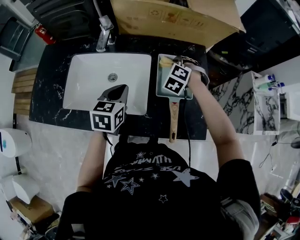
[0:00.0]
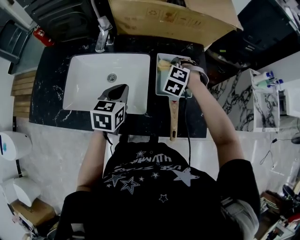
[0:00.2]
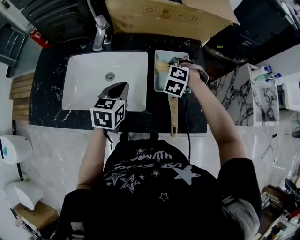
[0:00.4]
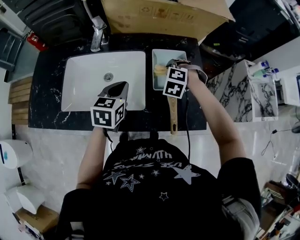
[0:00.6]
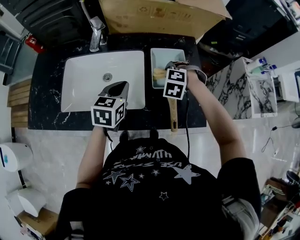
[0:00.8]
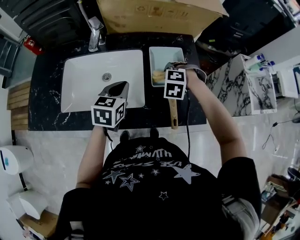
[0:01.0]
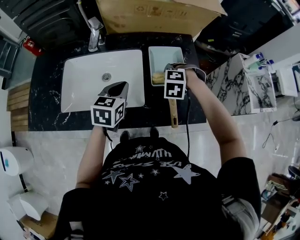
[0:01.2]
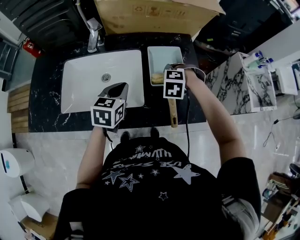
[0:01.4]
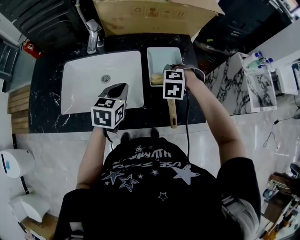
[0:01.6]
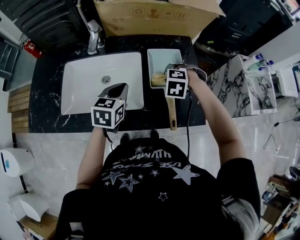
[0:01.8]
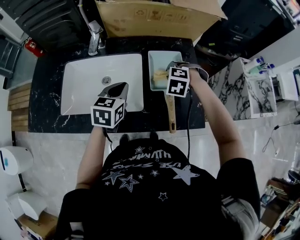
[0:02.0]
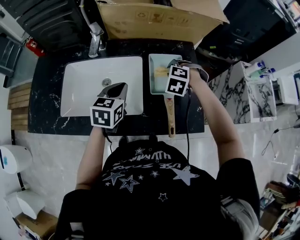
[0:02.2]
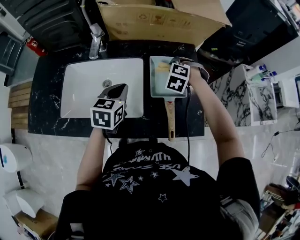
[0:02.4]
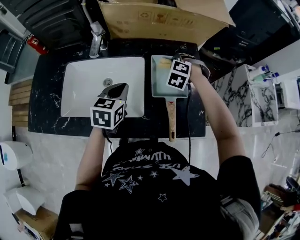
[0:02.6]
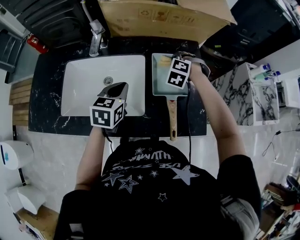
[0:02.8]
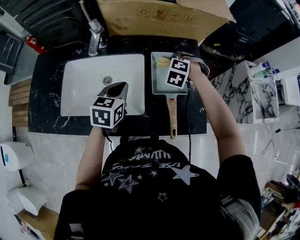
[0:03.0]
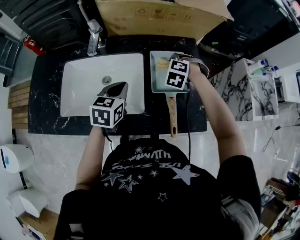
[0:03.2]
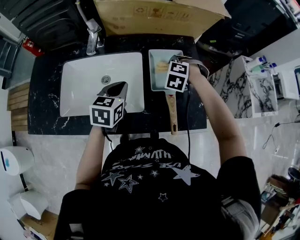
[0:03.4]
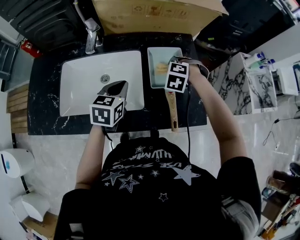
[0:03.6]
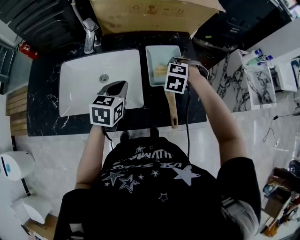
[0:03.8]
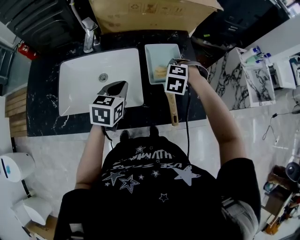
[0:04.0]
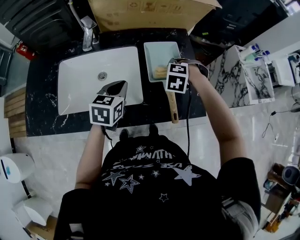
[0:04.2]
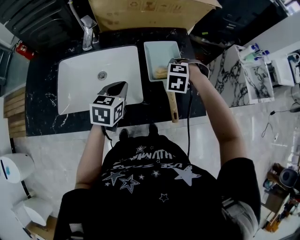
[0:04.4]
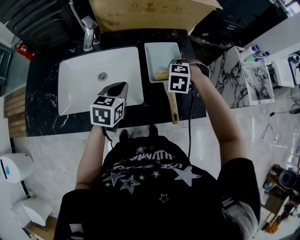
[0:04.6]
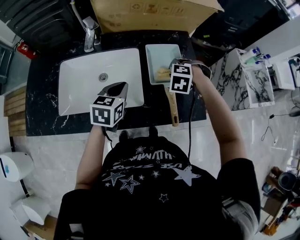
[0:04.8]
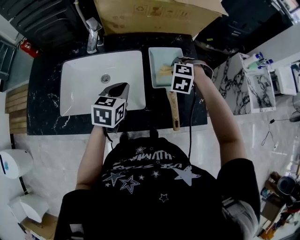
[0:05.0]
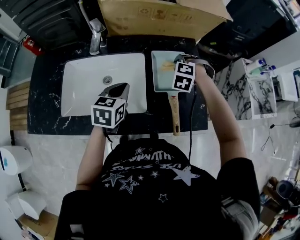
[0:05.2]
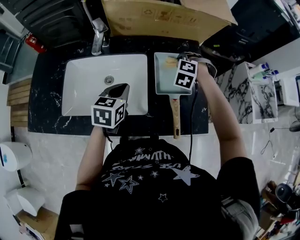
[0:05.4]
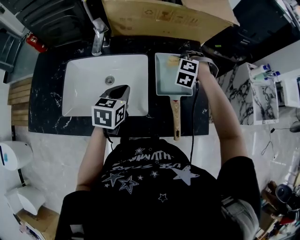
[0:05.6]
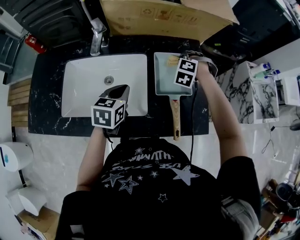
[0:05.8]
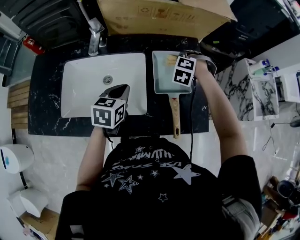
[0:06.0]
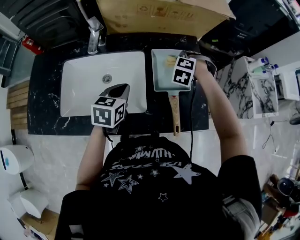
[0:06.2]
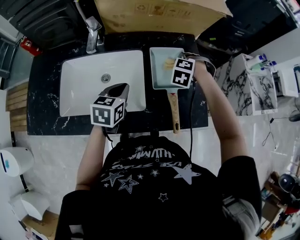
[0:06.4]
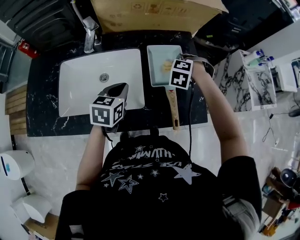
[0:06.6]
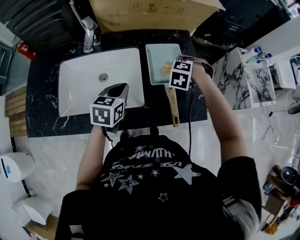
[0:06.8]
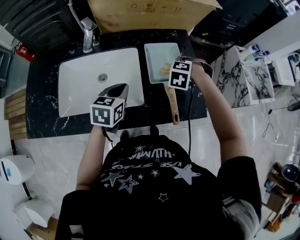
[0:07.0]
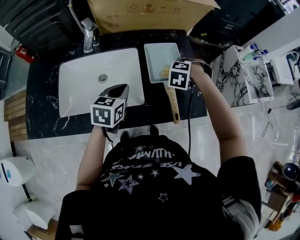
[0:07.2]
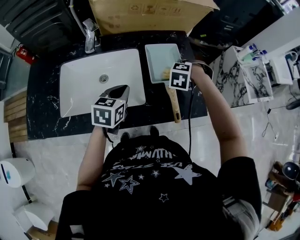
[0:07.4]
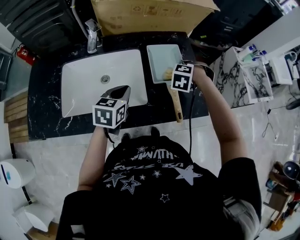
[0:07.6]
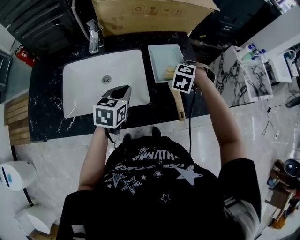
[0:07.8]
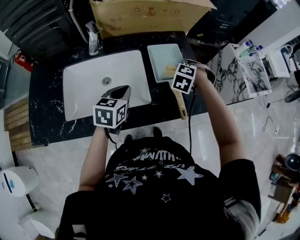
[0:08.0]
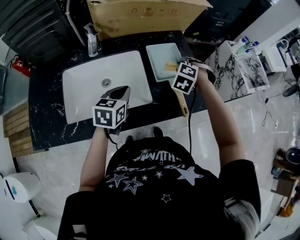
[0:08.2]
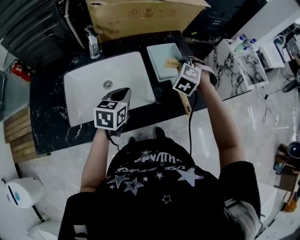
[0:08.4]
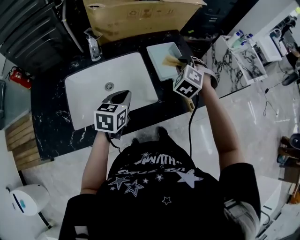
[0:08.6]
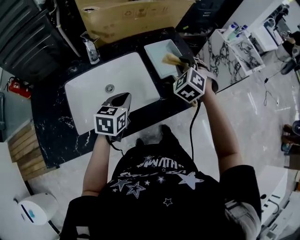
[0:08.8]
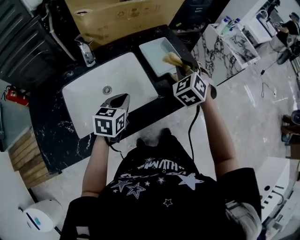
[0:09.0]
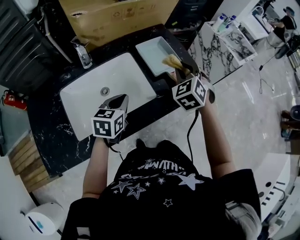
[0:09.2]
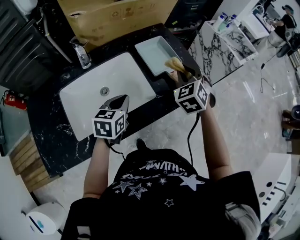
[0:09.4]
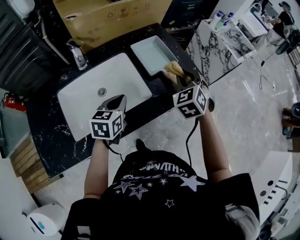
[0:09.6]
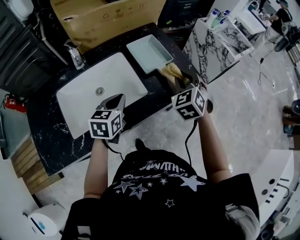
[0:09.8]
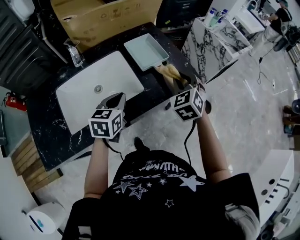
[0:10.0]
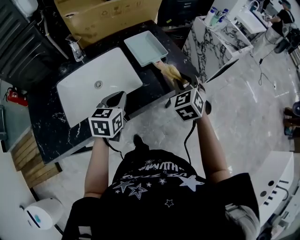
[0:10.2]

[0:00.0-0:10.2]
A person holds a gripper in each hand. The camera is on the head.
0:00.0 to 0:01.4: The right gripper shifts roughly 10 cm backward, and rotates approximately 20 degrees.
0:01.4 to 0:03.0: The right gripper shifts roughly 10 cm forward.
0:03.0 to 0:04.4: The right gripper heads backward, covering some 10 cm.
0:04.4 to 0:05.8: The right gripper heads forward, covering roughly 15 cm.
0:05.8 to 0:07.2: The right gripper shifts about 10 cm backward and to the right.
0:07.2 to 0:08.8: The left gripper moves backward, some 5 cm. The right gripper shifts about 15 cm upward and backward, and points its fingers approximately 30 degrees further upward.
0:08.8 to 0:10.2: The left gripper moves to the right, approximately 10 cm. Meanwhile the right gripper travels to the right and backward by about 15 cm, and turns by some 20 degrees.

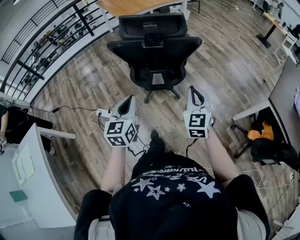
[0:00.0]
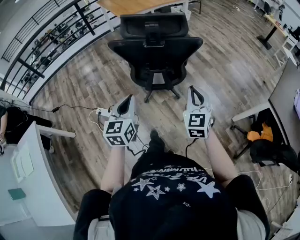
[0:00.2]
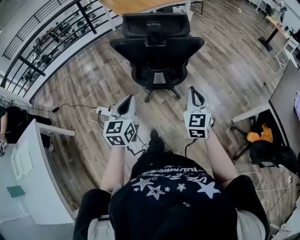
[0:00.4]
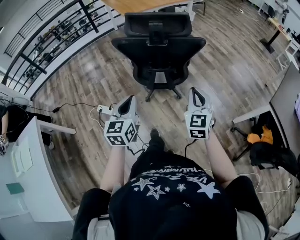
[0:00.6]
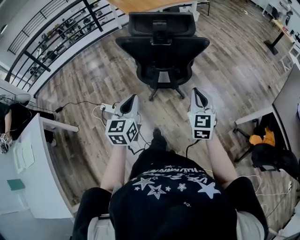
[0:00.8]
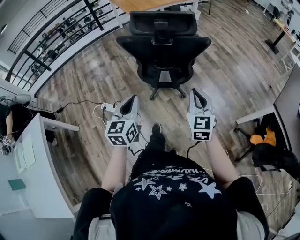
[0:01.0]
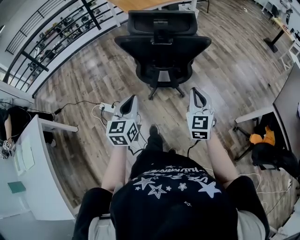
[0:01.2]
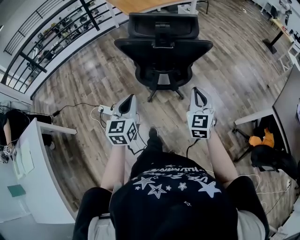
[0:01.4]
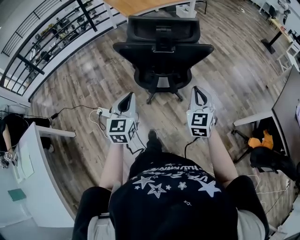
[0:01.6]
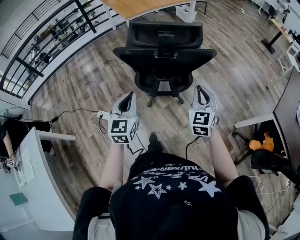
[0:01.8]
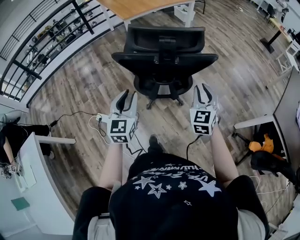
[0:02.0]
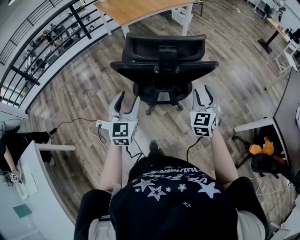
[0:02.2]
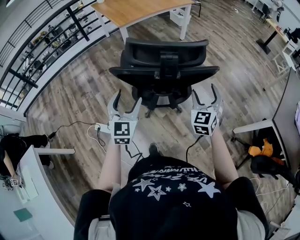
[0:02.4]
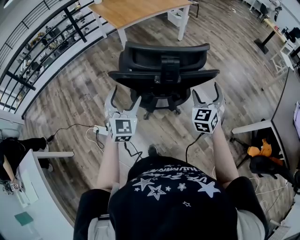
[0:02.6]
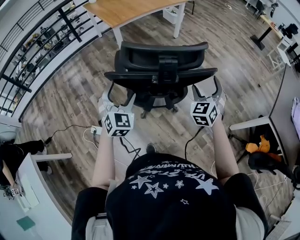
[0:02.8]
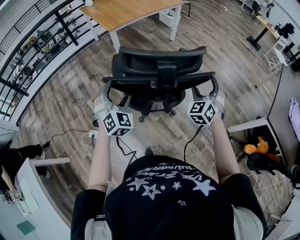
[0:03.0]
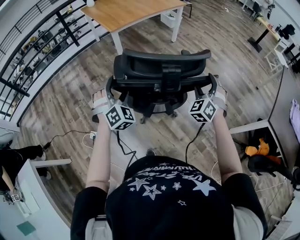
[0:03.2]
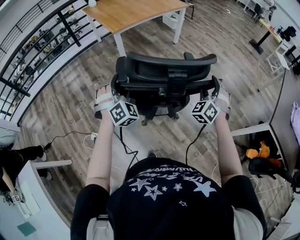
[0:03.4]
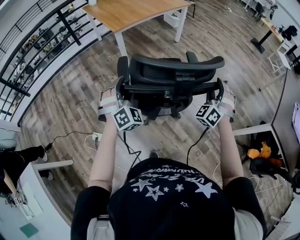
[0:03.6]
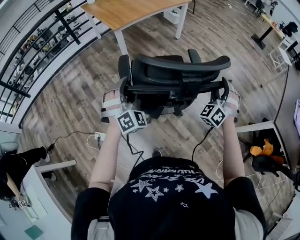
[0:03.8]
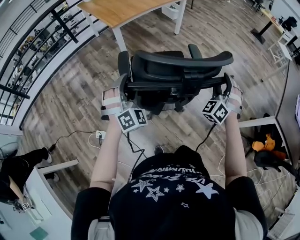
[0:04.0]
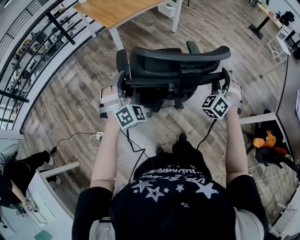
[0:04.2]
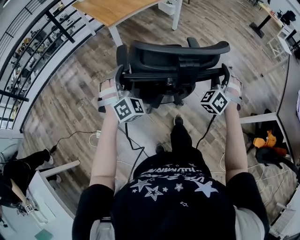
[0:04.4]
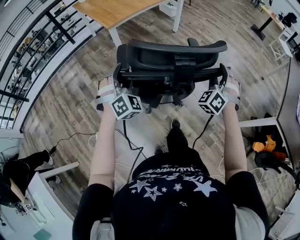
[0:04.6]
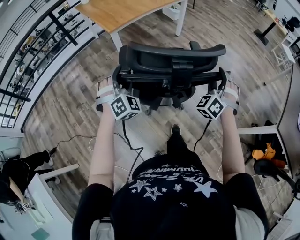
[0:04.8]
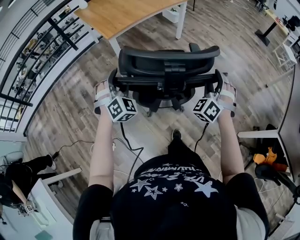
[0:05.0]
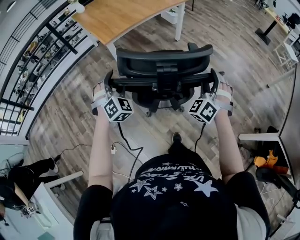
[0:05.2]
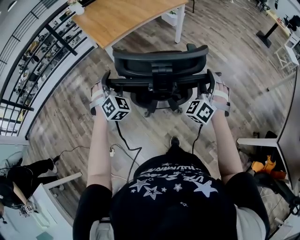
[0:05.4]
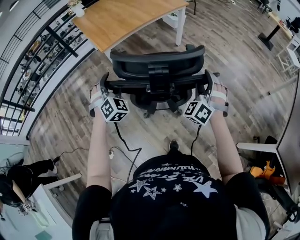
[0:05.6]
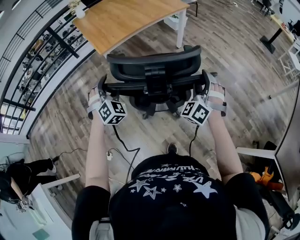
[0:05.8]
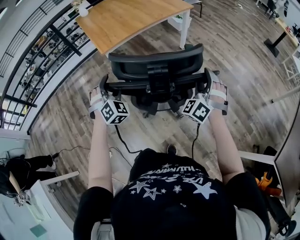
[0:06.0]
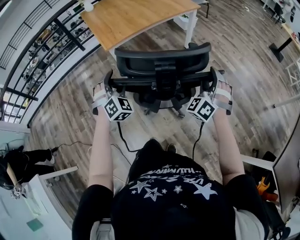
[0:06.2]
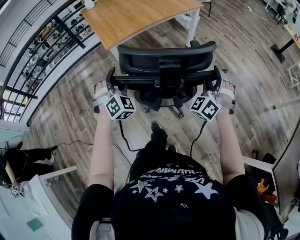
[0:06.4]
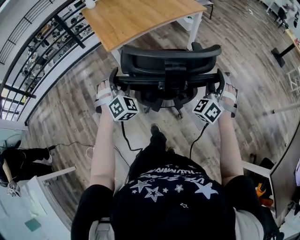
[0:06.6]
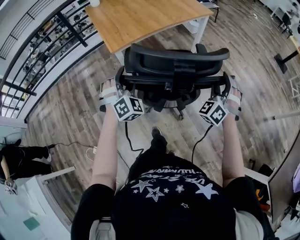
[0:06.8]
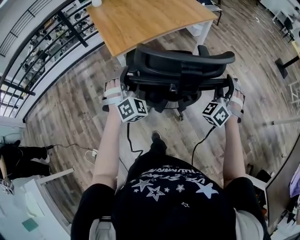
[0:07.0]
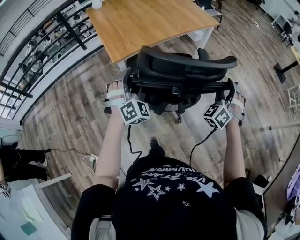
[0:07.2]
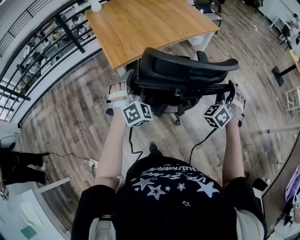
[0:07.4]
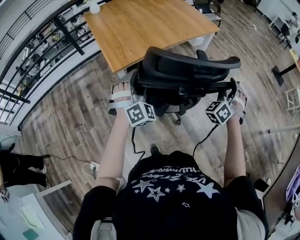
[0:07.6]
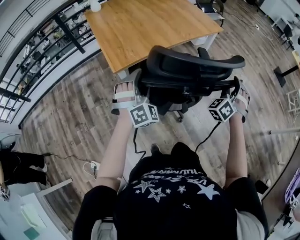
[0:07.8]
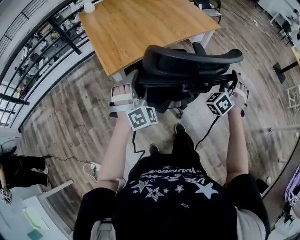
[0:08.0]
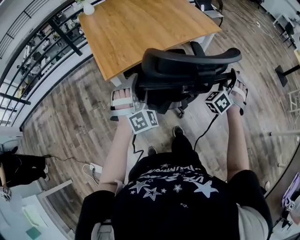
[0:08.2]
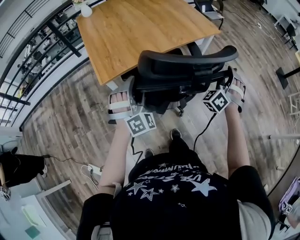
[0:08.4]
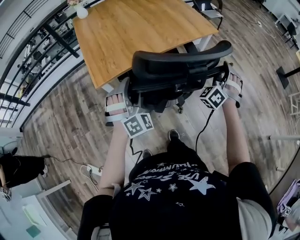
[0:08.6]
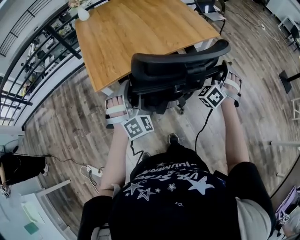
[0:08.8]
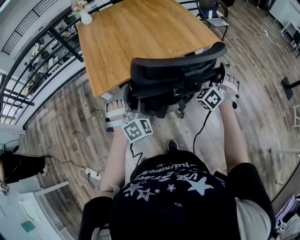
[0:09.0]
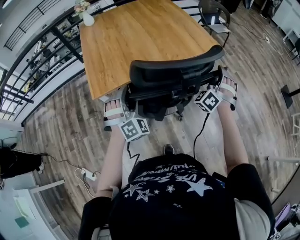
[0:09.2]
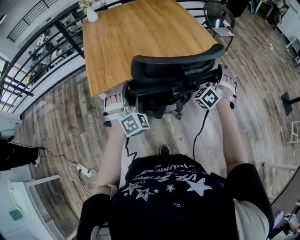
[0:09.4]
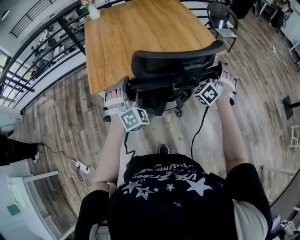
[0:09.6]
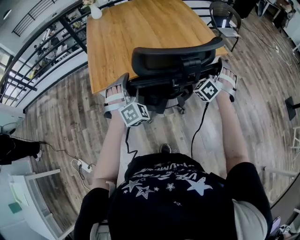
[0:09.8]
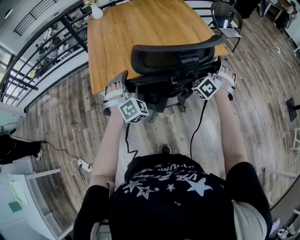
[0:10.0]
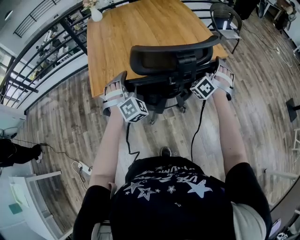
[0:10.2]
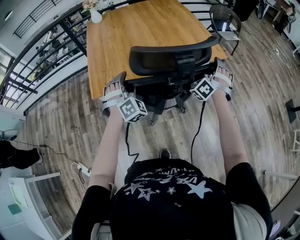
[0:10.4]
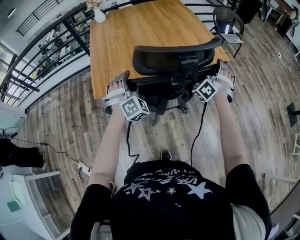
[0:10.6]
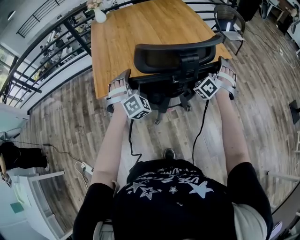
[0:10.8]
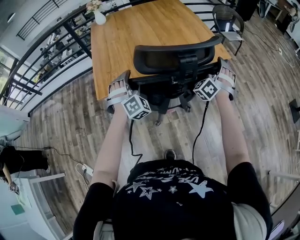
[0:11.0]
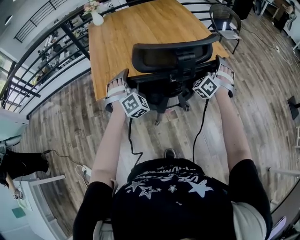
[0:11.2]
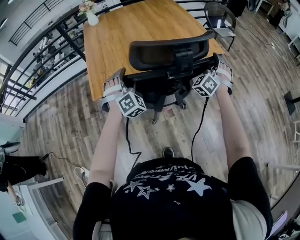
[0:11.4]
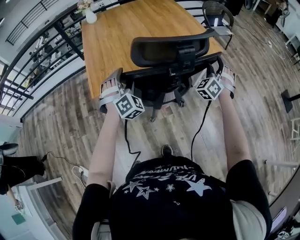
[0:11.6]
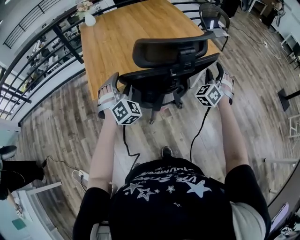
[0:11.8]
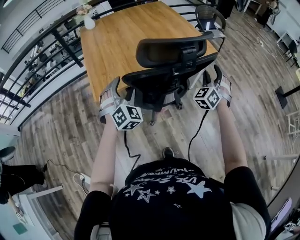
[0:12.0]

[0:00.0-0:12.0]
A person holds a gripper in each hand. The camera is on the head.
0:00.0 to 0:01.6: Both grippers travel together forward, roughly 5 cm.
0:01.6 to 0:03.0: The two grippers go about 20 cm forward. The right gripper rotates approximately 30 degrees, and opens. The left gripper twists roughly 50 degrees clockwise, seen from behind, and opens.
0:03.0 to 0:04.4: The grippers both shift forward by roughly 10 cm. The right gripper turns by roughly 20 degrees, and closes its fingers.
0:04.4 to 0:06.0: Both grippers move forward, some 25 cm.
0:06.0 to 0:07.6: Both grippers travel together forward, roughly 25 cm.
0:07.6 to 0:09.0: The right gripper is displaced forward by about 25 cm. Meanwhile the left gripper shifts approximately 15 cm forward and to the right.
0:09.0 to 0:10.4: The grippers both shift forward by approximately 10 cm.
0:10.4 to 0:12.0: The right gripper heads backward, covering approximately 10 cm, and changes its angle by some 20 degrees, while the left gripper shifts about 5 cm backward.

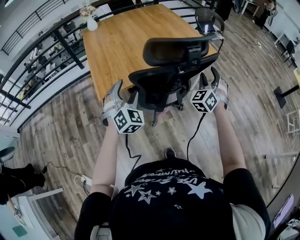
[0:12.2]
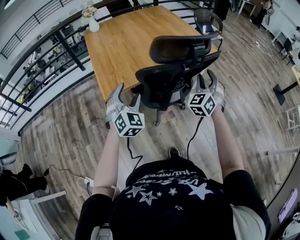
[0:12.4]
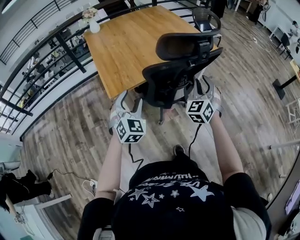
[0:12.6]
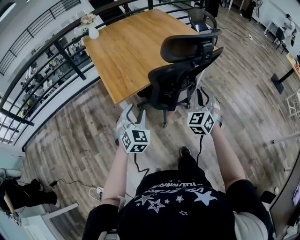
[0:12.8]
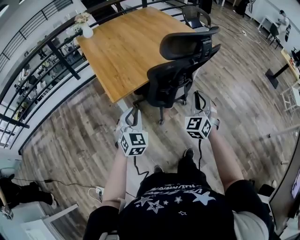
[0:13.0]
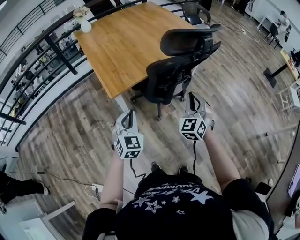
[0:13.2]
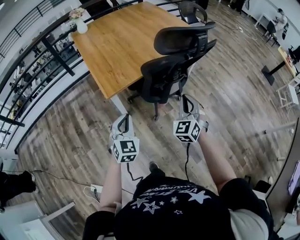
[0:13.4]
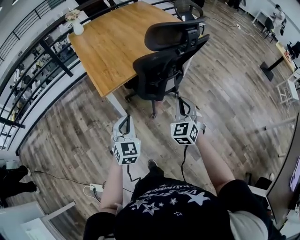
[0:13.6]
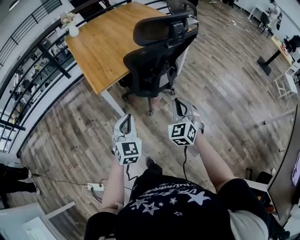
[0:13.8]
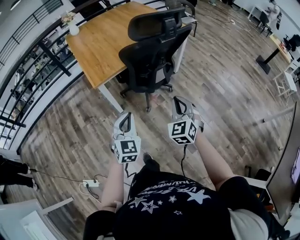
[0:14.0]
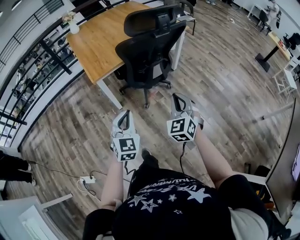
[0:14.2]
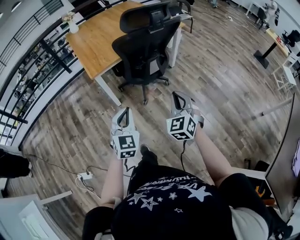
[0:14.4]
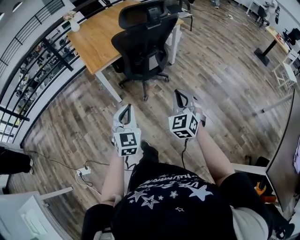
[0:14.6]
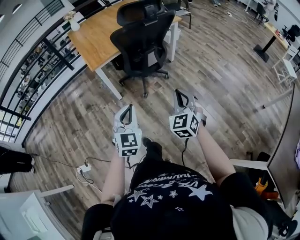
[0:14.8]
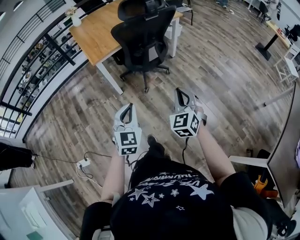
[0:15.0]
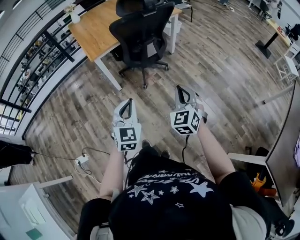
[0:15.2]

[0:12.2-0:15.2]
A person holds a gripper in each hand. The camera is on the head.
0:12.2 to 0:13.8: The grippers both shift backward by some 25 cm. The left gripper changes its angle by approximately 30 degrees, and closes up, while the right gripper rotates approximately 20 degrees, and closes.
0:13.8 to 0:15.2: The grippers both shift backward and to the right by roughly 25 cm.
